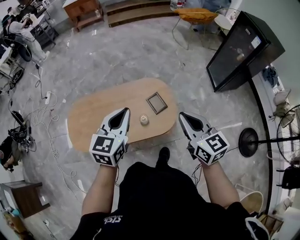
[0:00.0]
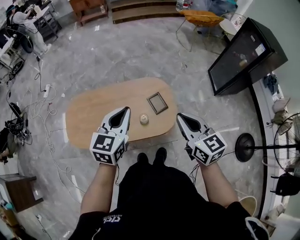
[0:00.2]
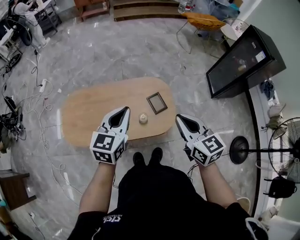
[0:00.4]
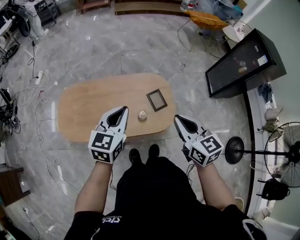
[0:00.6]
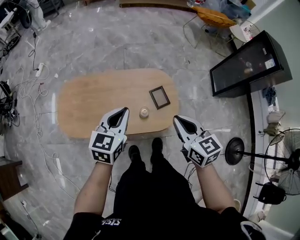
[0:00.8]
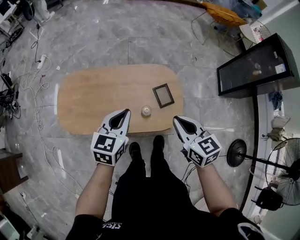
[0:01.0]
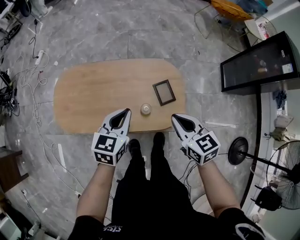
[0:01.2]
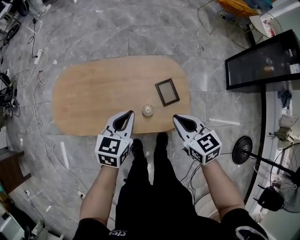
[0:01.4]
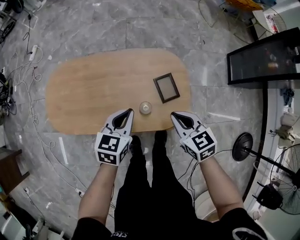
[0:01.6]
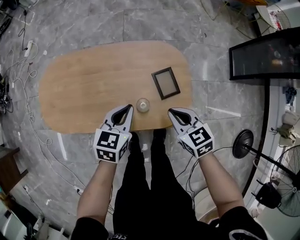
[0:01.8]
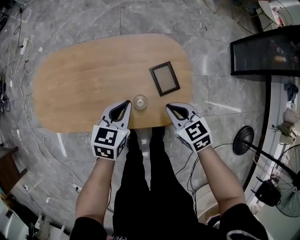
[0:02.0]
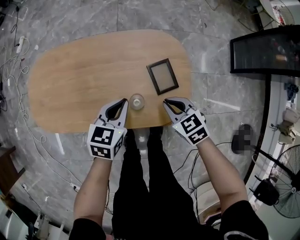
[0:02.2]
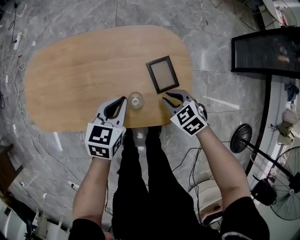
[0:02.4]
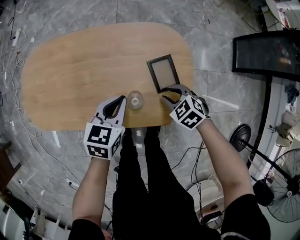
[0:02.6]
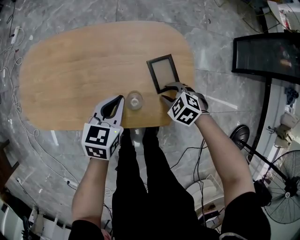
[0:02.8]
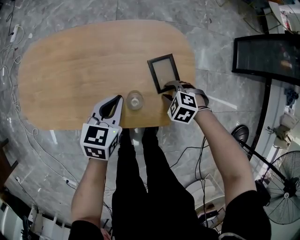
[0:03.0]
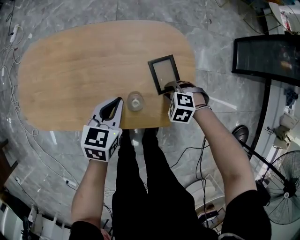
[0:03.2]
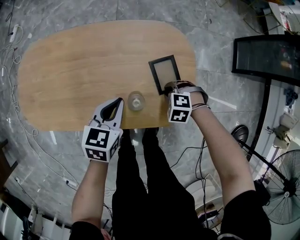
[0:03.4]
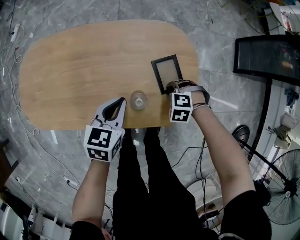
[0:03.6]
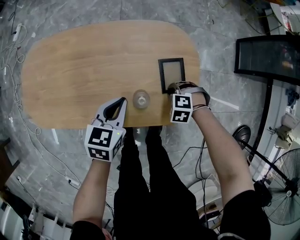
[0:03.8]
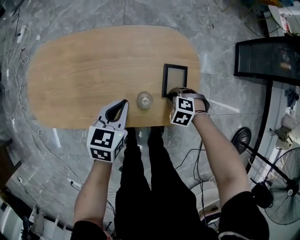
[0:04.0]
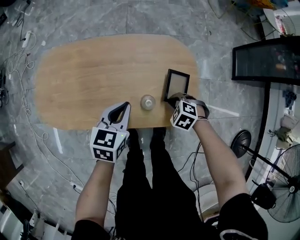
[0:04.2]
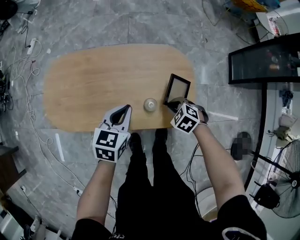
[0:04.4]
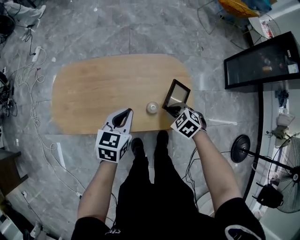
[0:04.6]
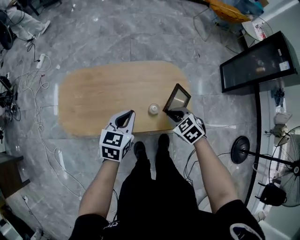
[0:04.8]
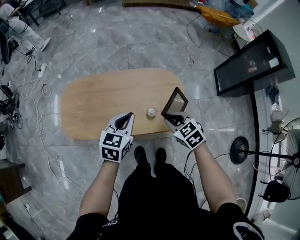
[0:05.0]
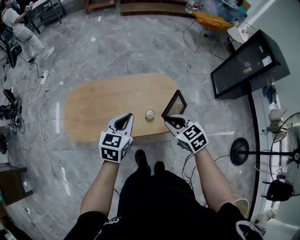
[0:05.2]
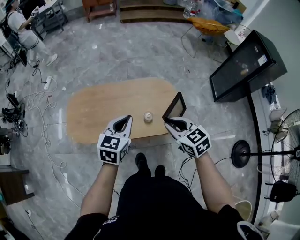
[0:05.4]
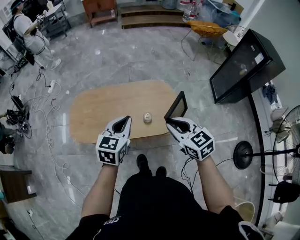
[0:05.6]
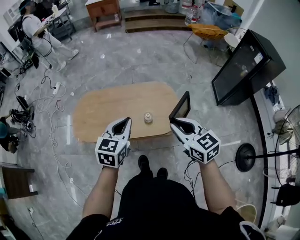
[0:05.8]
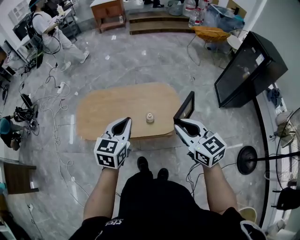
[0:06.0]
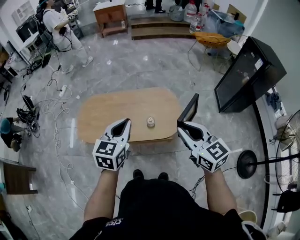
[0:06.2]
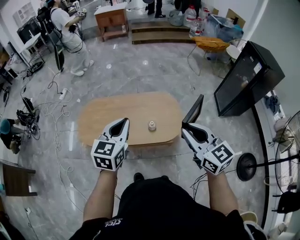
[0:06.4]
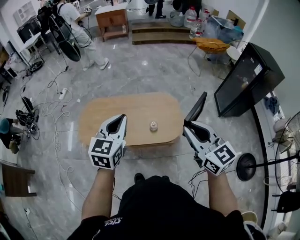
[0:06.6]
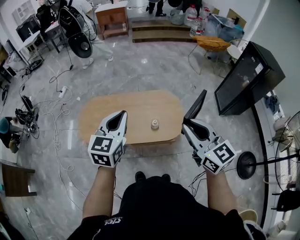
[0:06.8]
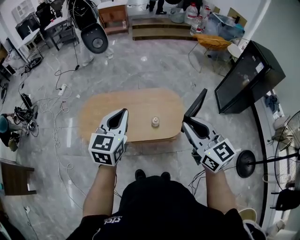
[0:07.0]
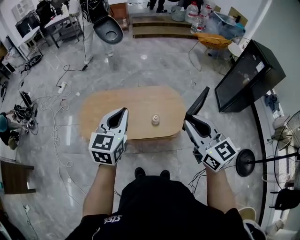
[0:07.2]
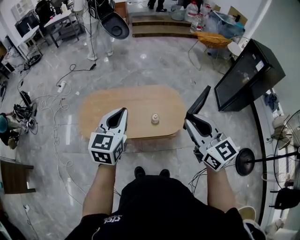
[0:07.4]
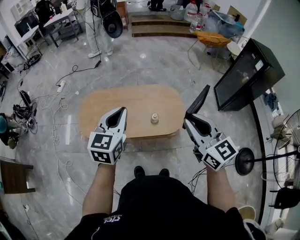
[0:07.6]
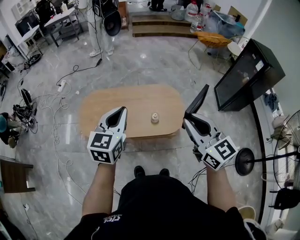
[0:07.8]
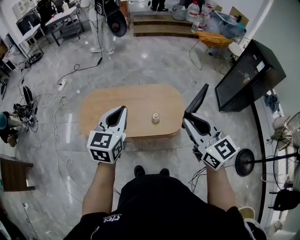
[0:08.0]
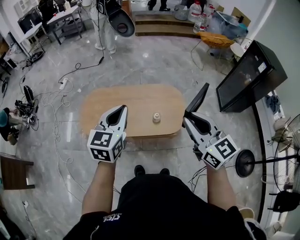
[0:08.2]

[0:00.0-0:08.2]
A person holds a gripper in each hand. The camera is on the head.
0:00.0 to 0:01.6: Both grippers travel together downward, some 30 cm. The right gripper rotates approximately 30 degrees, while the left gripper turns by approximately 20 degrees.
0:01.6 to 0:03.2: The right gripper travels downward by about 30 cm, tilts its fingers about 40 degrees downward, and opens its fingers. Meanwhile the left gripper travels downward by some 15 cm.
0:03.2 to 0:05.0: The grippers both shift upward by about 30 cm. The right gripper rotates approximately 50 degrees.
0:05.0 to 0:06.6: The grippers both shift upward and backward by roughly 30 cm. The left gripper turns by approximately 20 degrees. The right gripper points its fingers about 40 degrees further upward.
0:06.6 to 0:08.2: The grippers move only a little.

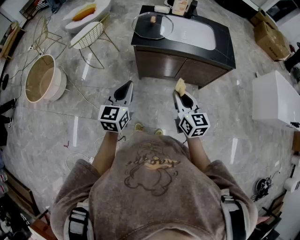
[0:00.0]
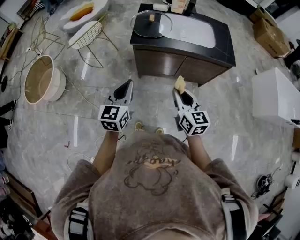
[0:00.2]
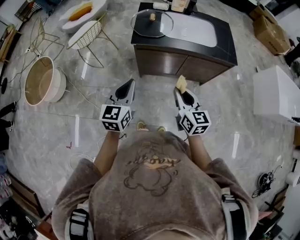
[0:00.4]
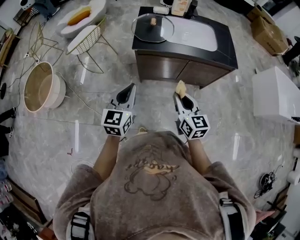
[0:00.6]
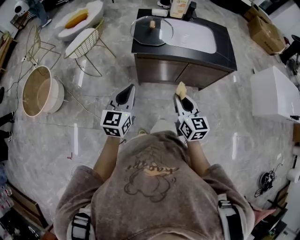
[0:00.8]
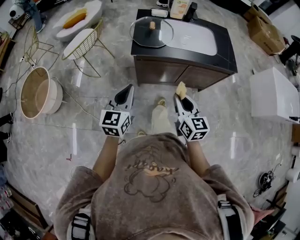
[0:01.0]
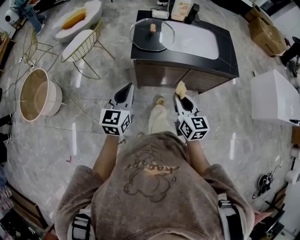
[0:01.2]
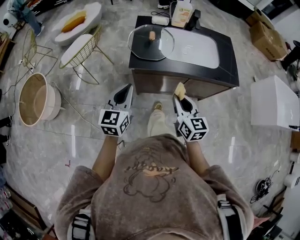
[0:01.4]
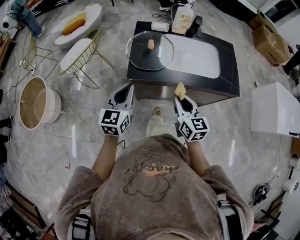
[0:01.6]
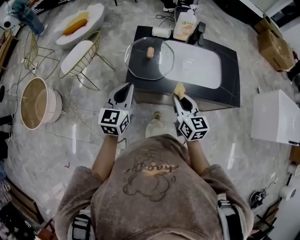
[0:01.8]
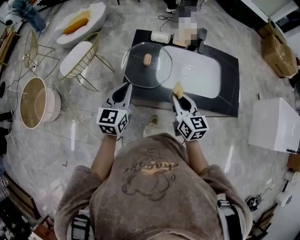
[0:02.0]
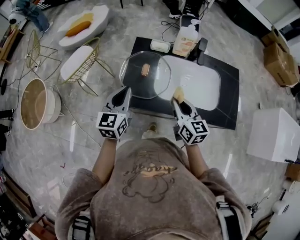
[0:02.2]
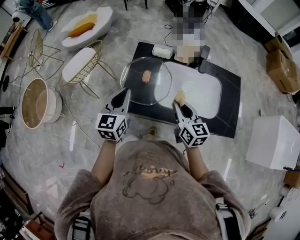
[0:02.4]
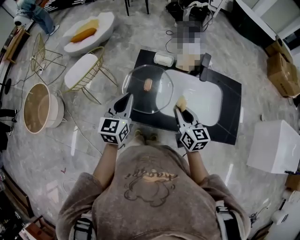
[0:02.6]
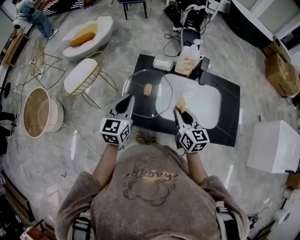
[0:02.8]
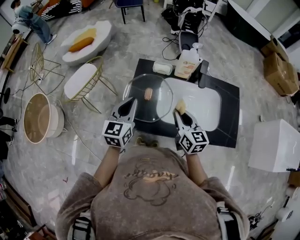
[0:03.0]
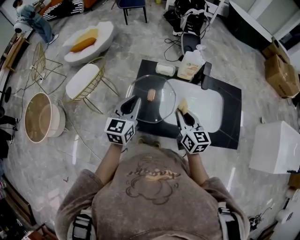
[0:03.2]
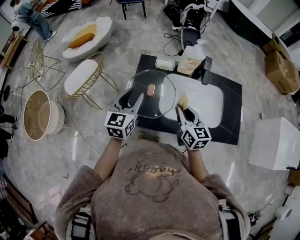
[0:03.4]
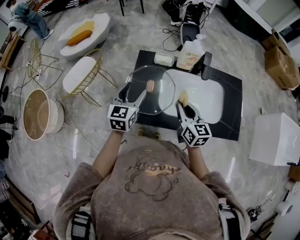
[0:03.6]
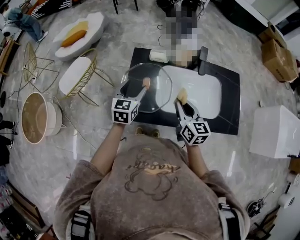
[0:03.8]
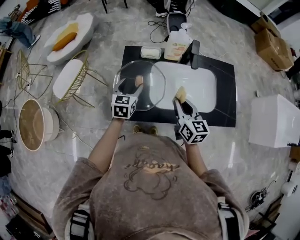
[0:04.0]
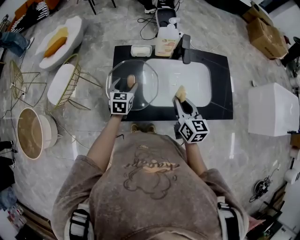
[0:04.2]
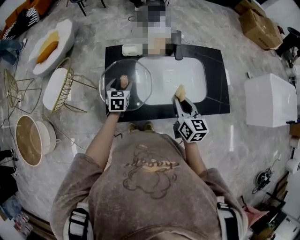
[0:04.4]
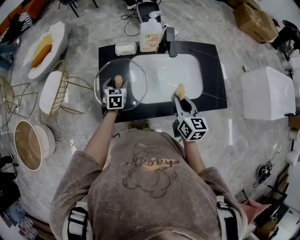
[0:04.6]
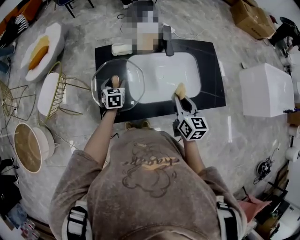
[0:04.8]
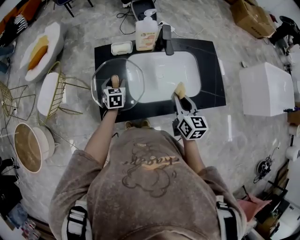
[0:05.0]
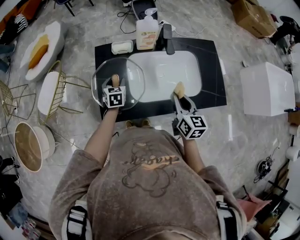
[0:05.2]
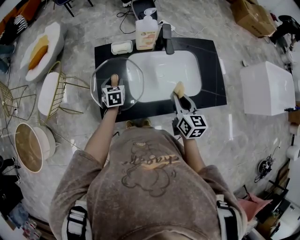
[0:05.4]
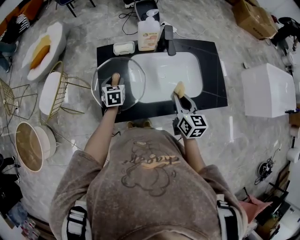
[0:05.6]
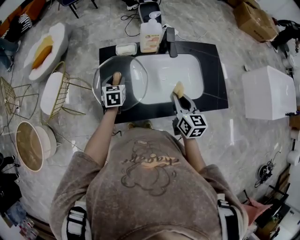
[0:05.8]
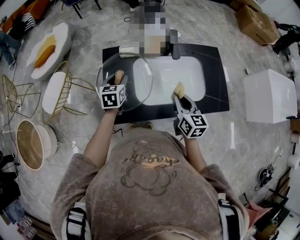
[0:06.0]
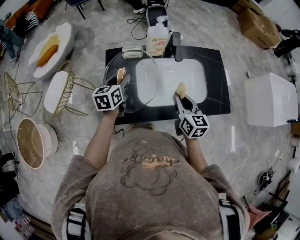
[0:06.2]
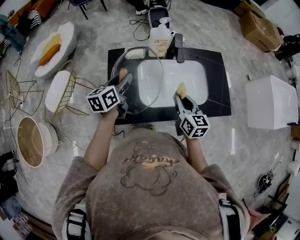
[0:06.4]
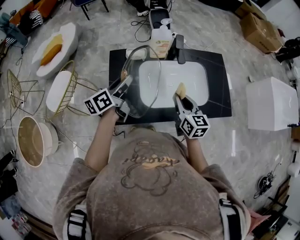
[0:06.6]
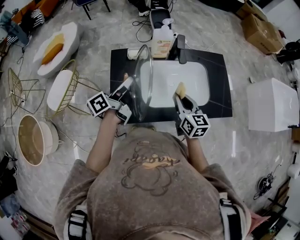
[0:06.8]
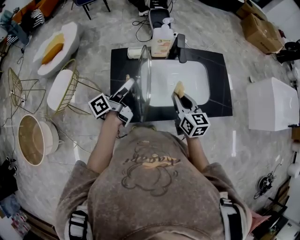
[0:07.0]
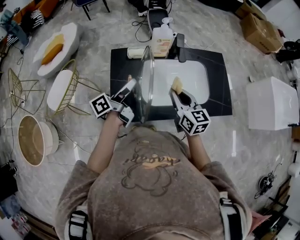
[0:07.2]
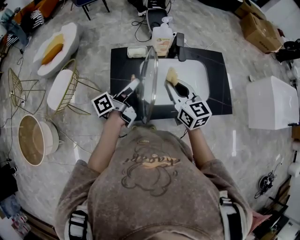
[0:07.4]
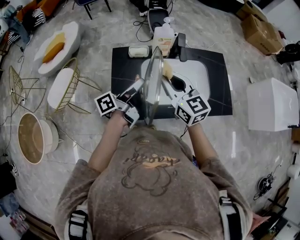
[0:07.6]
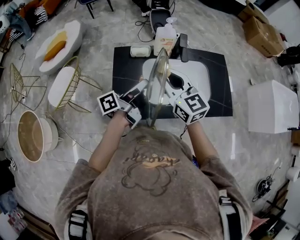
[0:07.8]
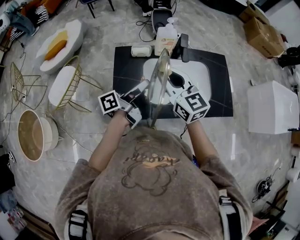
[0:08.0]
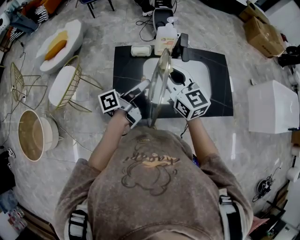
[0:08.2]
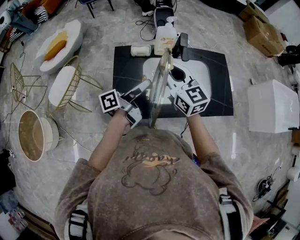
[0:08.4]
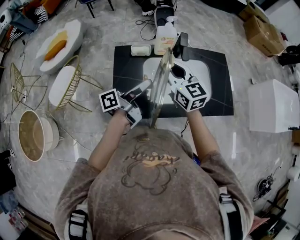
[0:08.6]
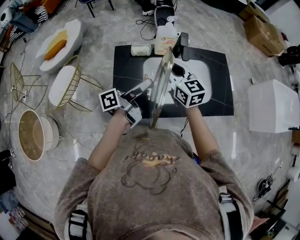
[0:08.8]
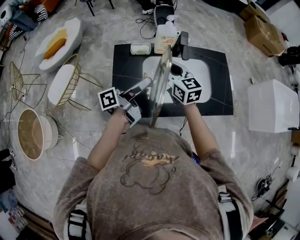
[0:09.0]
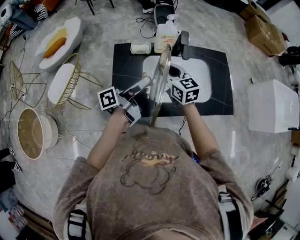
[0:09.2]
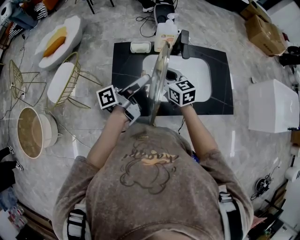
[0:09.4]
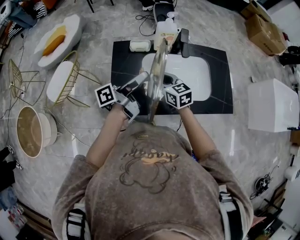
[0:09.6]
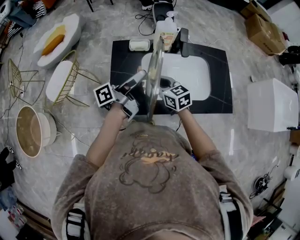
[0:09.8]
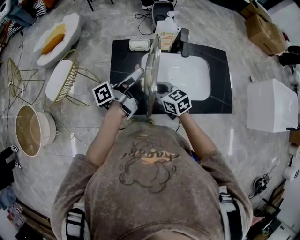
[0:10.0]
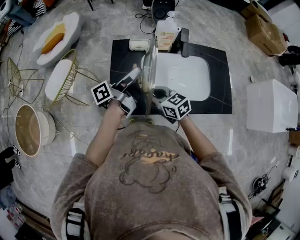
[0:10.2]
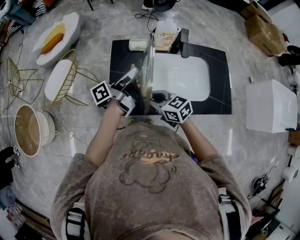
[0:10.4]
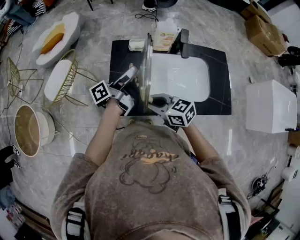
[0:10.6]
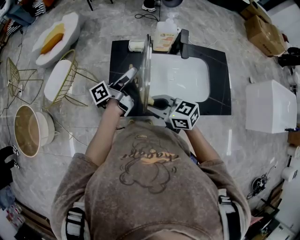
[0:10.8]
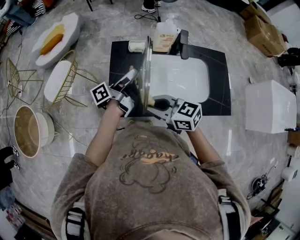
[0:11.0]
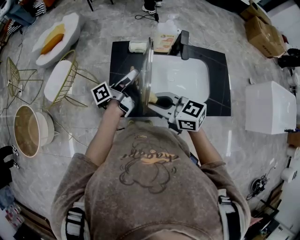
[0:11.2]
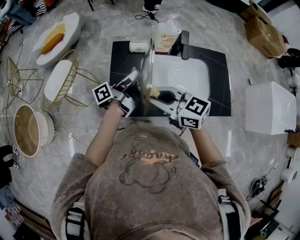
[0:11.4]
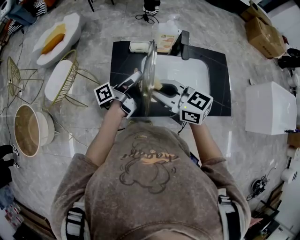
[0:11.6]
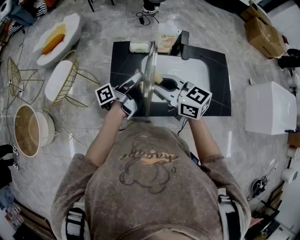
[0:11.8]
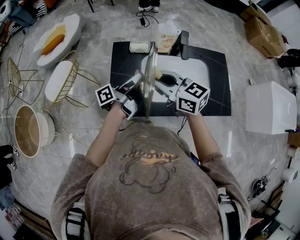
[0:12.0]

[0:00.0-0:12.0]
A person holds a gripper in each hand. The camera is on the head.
0:00.0 to 0:01.6: The grippers both shift forward by approximately 25 cm.
0:01.6 to 0:03.0: The two grippers go roughly 25 cm forward.
0:03.0 to 0:04.4: The left gripper moves downward and forward, approximately 20 cm, swivels roughly 30 degrees, and opens up, while the right gripper moves to the right, some 10 cm.
0:04.4 to 0:06.0: The left gripper is displaced upward by about 5 cm, and closes.
0:06.0 to 0:07.6: The left gripper moves upward, backward and to the right, about 15 cm, and tilts its fingers about 40 degrees upward. The right gripper is displaced upward and to the left by roughly 15 cm, and swivels approximately 30 degrees.
0:07.6 to 0:09.0: The right gripper travels forward and downward by roughly 10 cm.
0:09.0 to 0:10.4: The left gripper ends up roughly 5 cm from where it was. Meanwhile the right gripper travels backward, downward and to the left by roughly 15 cm, and rotates some 30 degrees.
0:10.4 to 0:12.0: The right gripper moves upward, some 15 cm.

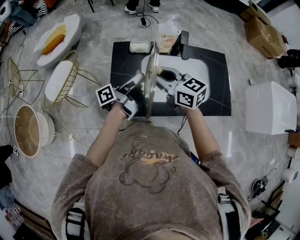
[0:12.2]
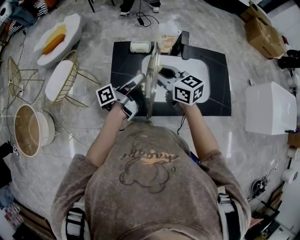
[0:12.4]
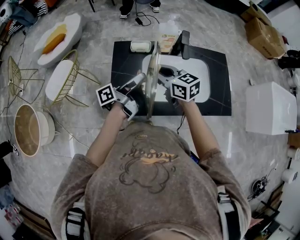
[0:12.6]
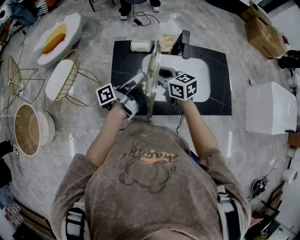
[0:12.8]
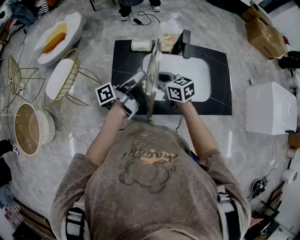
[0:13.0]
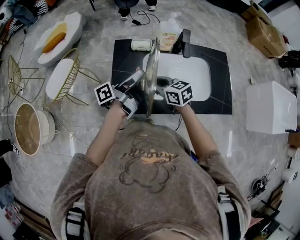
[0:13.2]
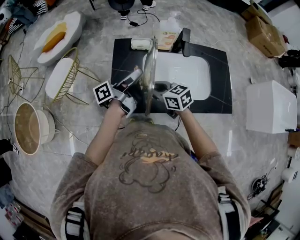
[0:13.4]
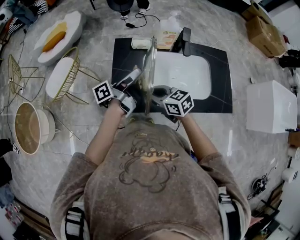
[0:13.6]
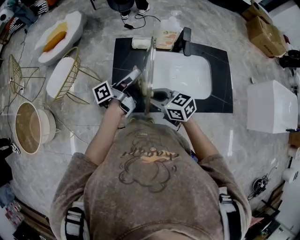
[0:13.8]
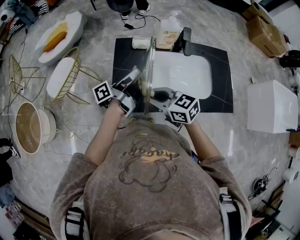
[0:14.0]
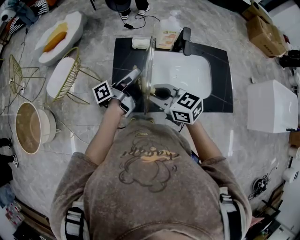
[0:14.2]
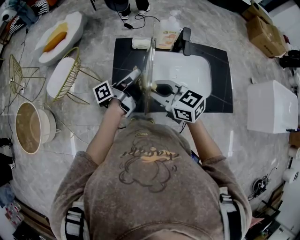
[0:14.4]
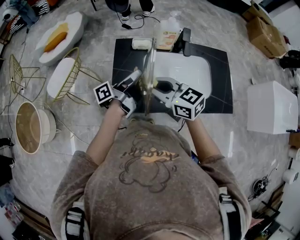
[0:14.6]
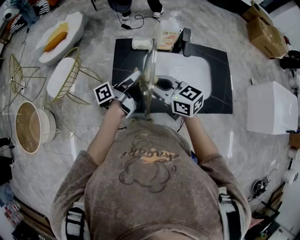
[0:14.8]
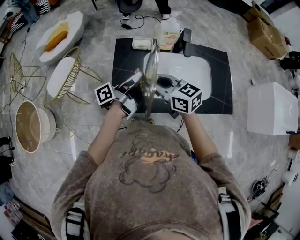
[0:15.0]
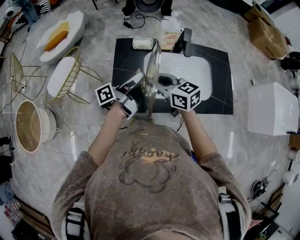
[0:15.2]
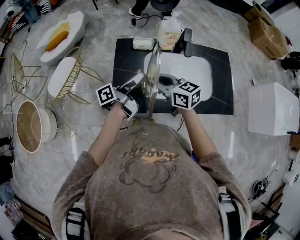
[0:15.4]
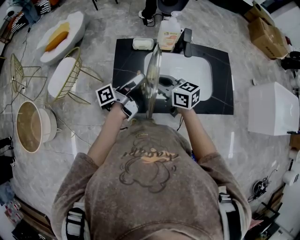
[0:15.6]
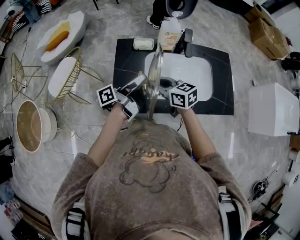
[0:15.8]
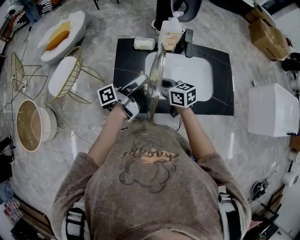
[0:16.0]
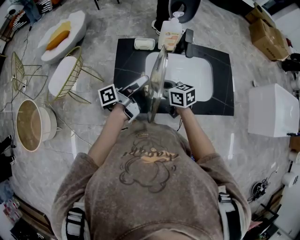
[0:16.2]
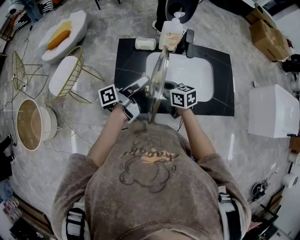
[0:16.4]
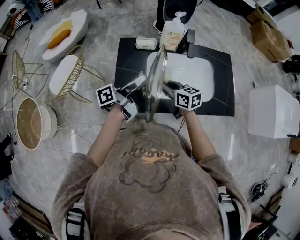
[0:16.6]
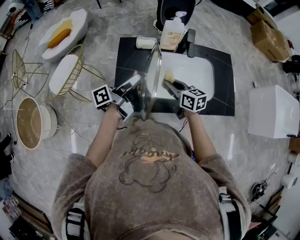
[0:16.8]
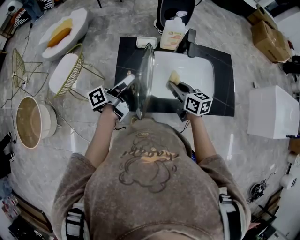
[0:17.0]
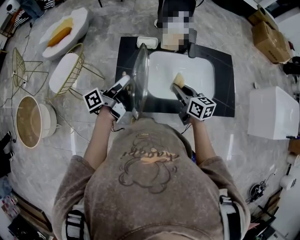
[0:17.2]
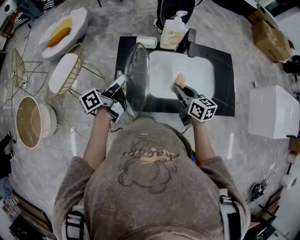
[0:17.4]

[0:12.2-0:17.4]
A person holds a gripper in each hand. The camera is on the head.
0:12.2 to 0:14.0: The right gripper shifts some 10 cm backward and downward.
0:14.0 to 0:15.6: The right gripper is displaced forward by some 5 cm.
0:15.6 to 0:17.4: The left gripper moves to the left, some 10 cm. Meanwhile the right gripper goes about 10 cm to the right, and swivels roughly 20 degrees.
